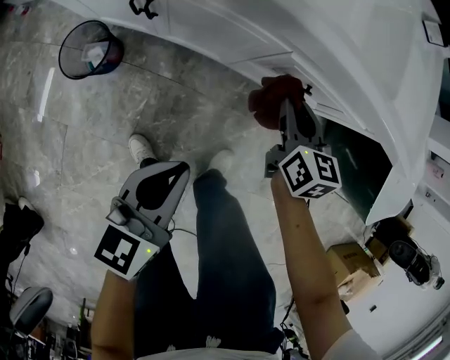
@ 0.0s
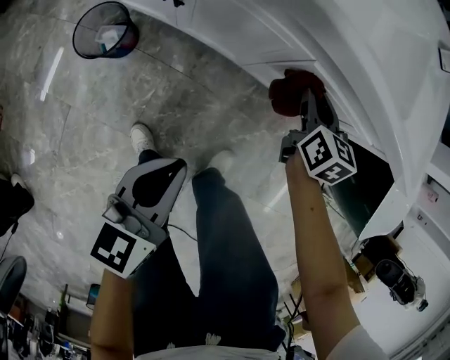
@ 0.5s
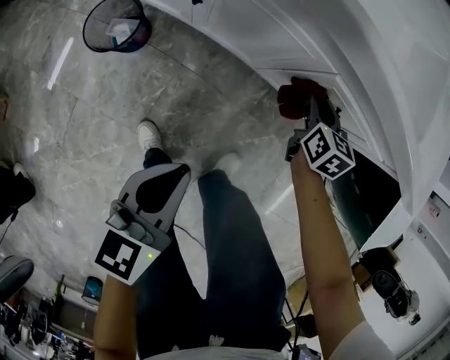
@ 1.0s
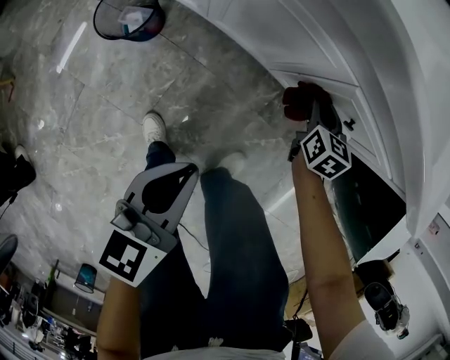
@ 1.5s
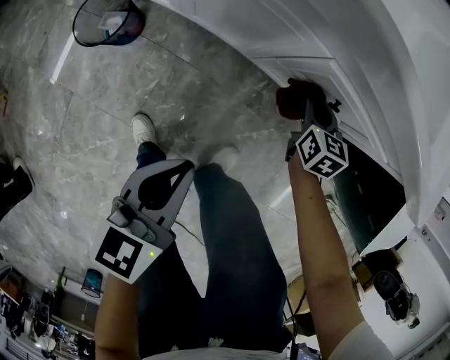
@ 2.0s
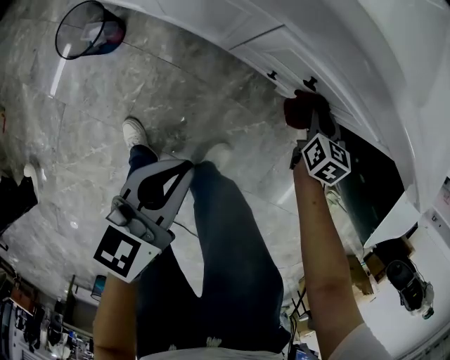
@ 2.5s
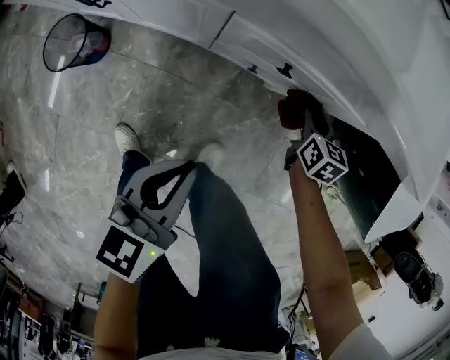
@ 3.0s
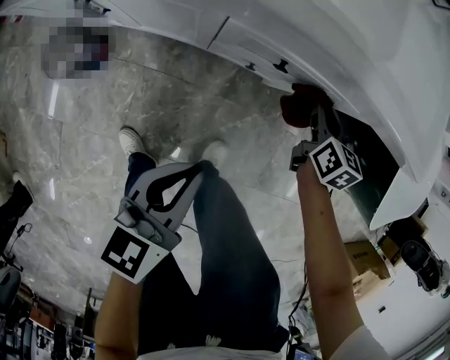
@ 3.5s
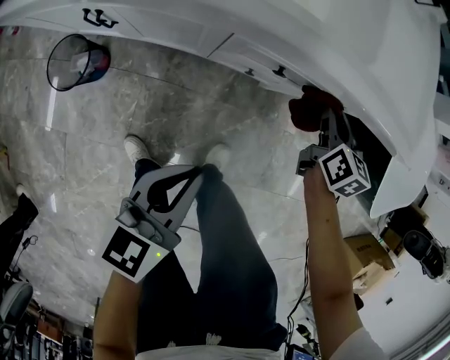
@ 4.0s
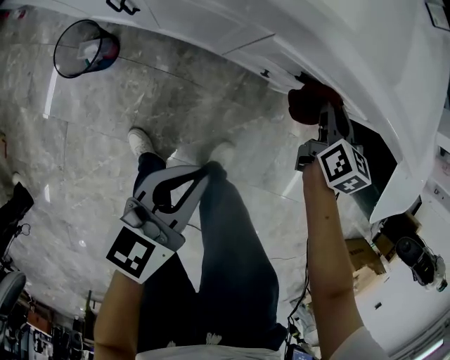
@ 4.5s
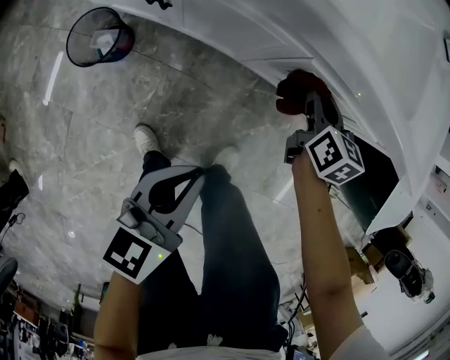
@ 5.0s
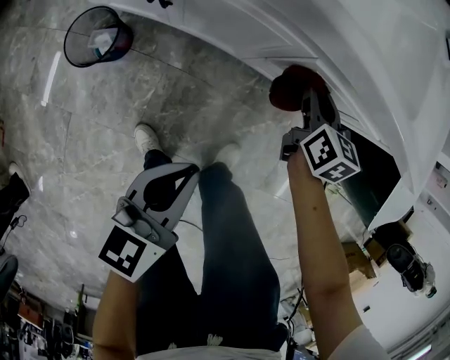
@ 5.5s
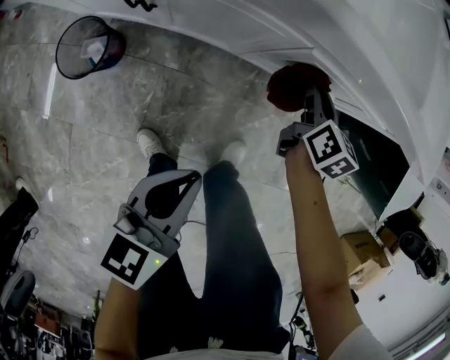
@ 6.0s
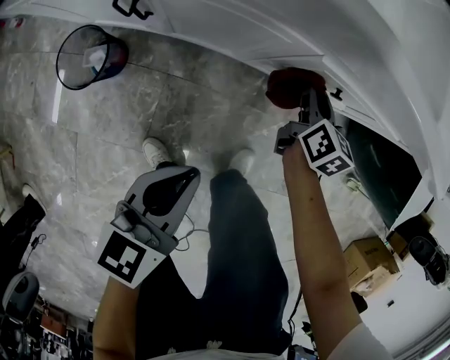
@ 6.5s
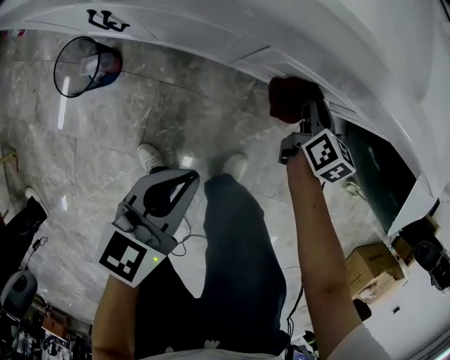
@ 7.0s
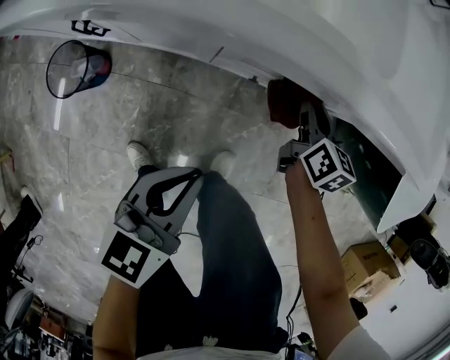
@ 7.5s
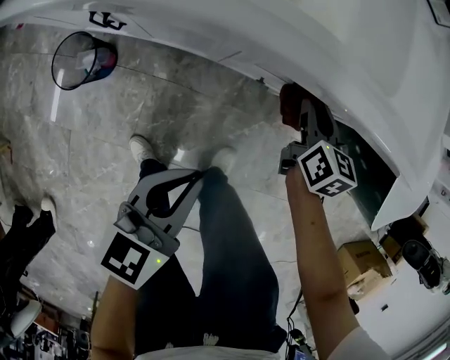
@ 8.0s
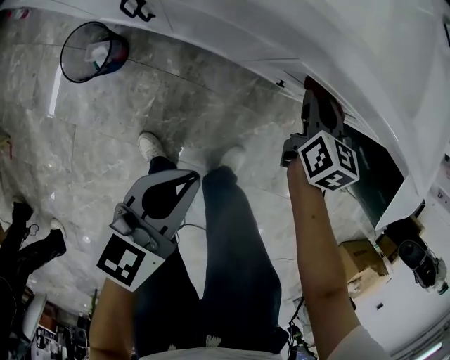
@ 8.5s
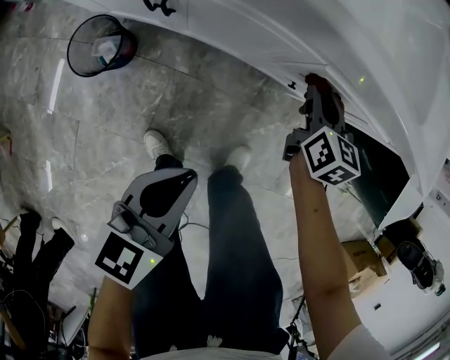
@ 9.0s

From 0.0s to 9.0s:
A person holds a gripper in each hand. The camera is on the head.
From 0.0s to 2.0s: The right gripper is displaced downward by roughly 10 cm.
From 2.0s to 4.5s: The right gripper is displaced upward and to the right by roughly 15 cm.
From 4.5s to 7.0s: The right gripper moves downward, about 10 cm, and travels to the left and back again, about 10 cm each way.
From 7.0s to 9.0s: The left gripper shifts some 5 cm to the left; the right gripper moves to the left and upward, some 15 cm.

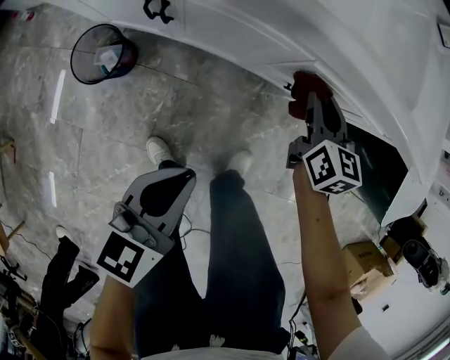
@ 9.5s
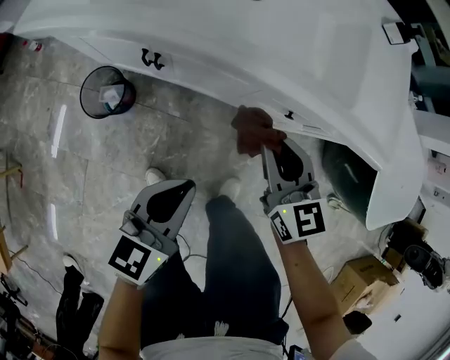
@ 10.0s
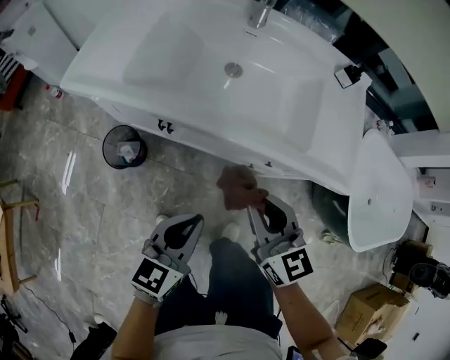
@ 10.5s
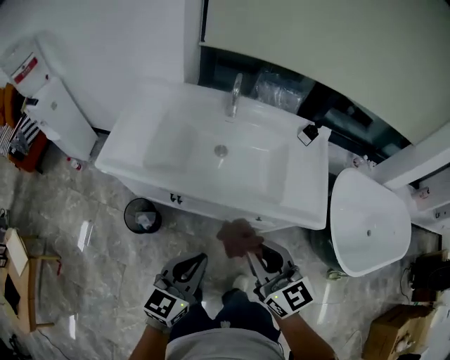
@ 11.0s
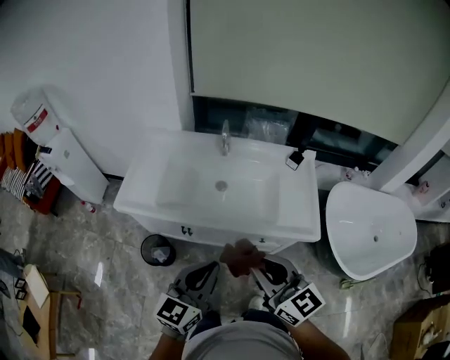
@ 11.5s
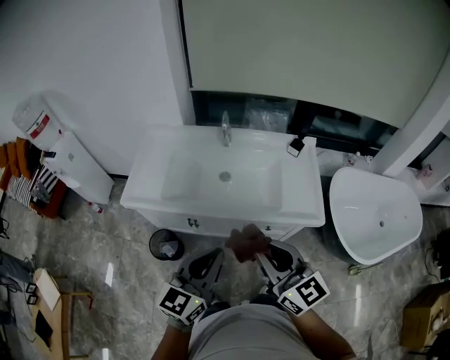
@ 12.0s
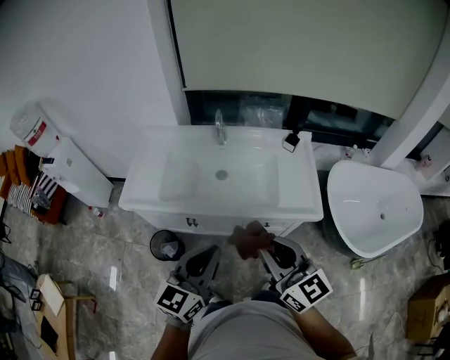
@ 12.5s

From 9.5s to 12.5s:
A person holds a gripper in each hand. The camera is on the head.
From 9.5s to 11.0s: Both grippers move upward, approximately 35 cm. The left gripper changes its angle by some 20 degrees. The right gripper changes its angle by approximately 30 degrees.
From 11.0s to 12.5s: The two grippers go some 15 cm upward.

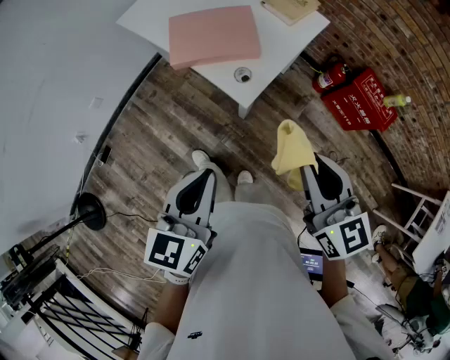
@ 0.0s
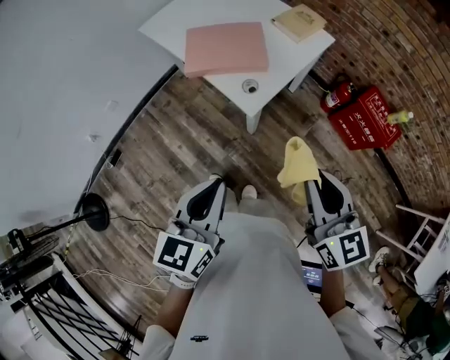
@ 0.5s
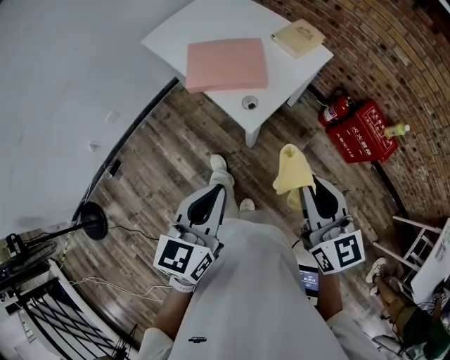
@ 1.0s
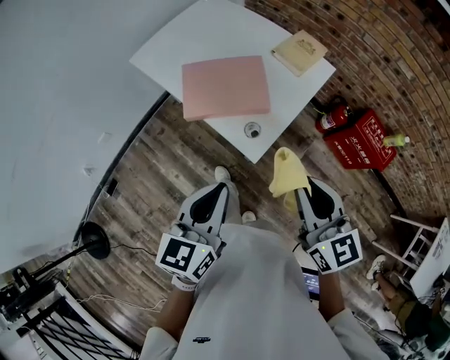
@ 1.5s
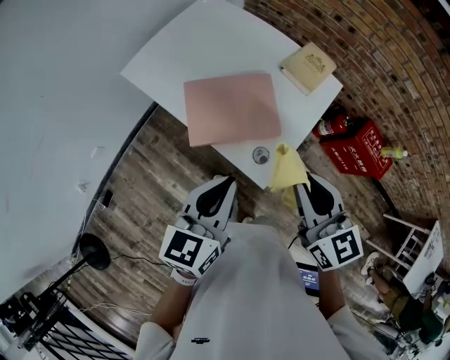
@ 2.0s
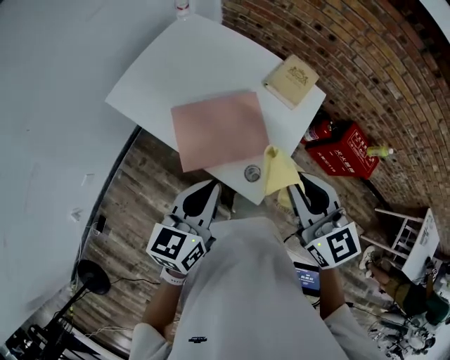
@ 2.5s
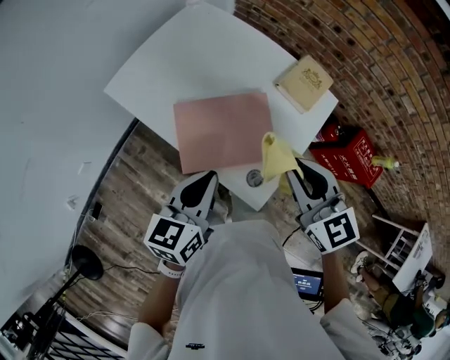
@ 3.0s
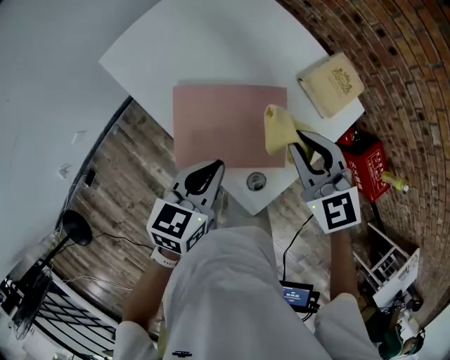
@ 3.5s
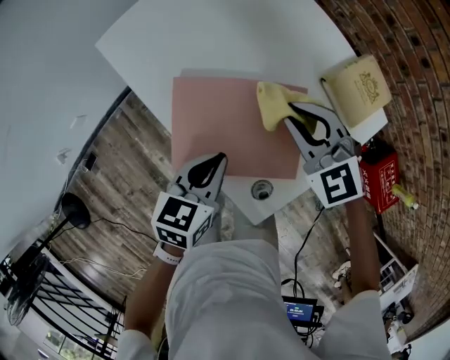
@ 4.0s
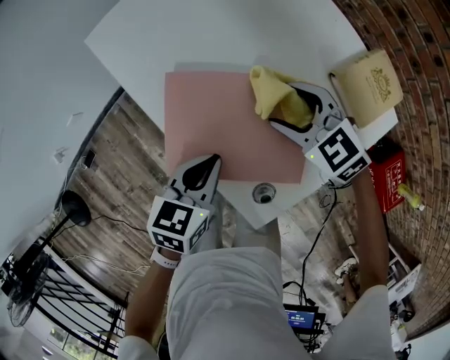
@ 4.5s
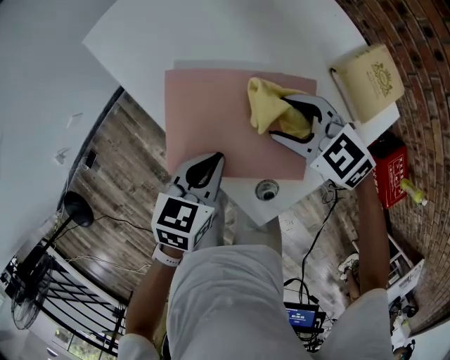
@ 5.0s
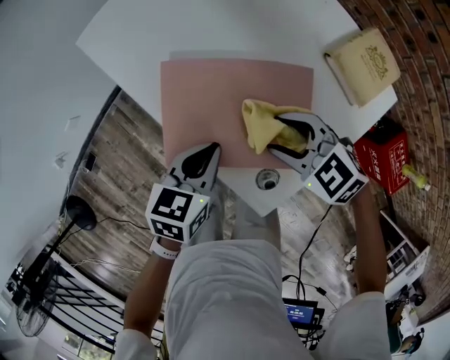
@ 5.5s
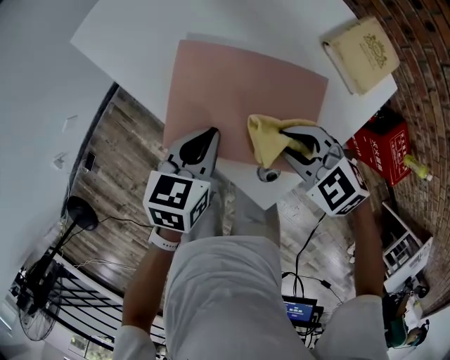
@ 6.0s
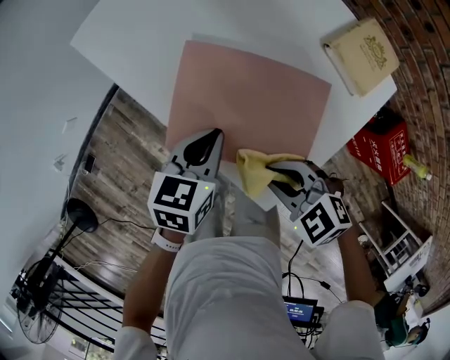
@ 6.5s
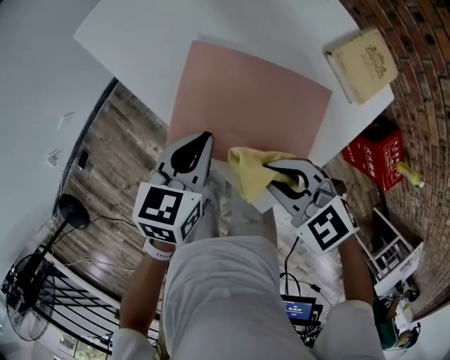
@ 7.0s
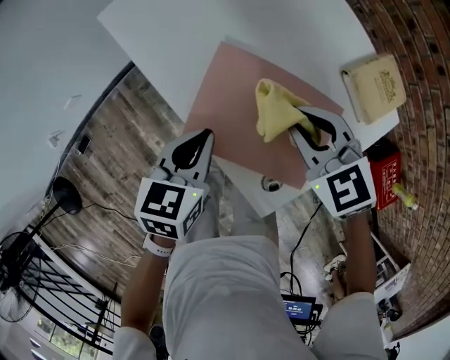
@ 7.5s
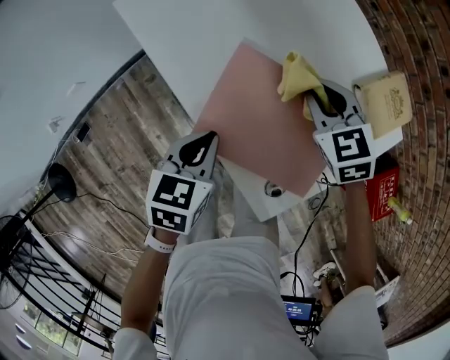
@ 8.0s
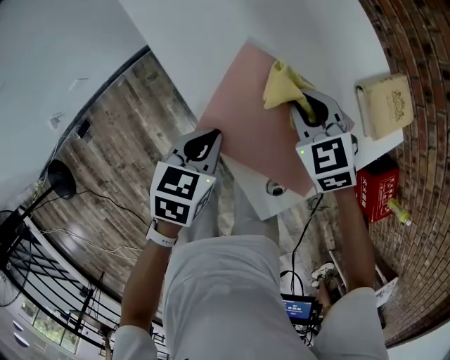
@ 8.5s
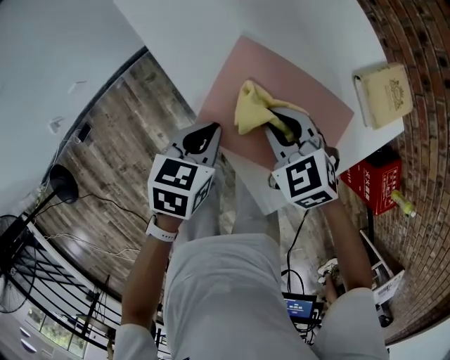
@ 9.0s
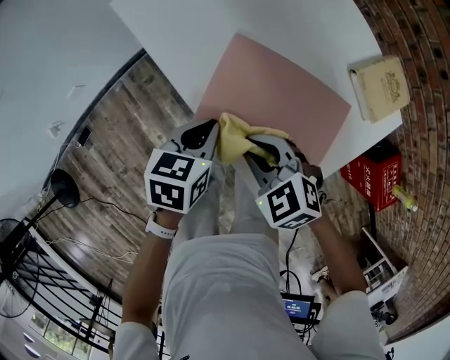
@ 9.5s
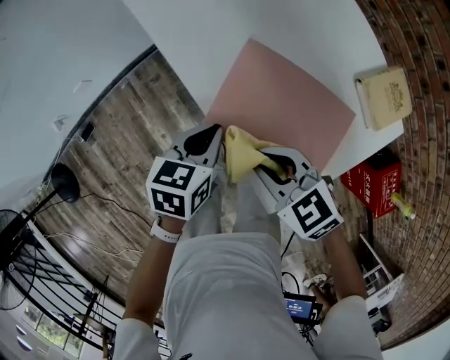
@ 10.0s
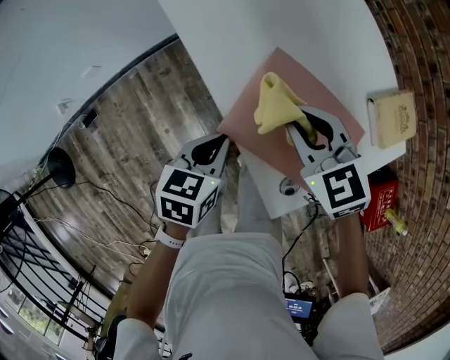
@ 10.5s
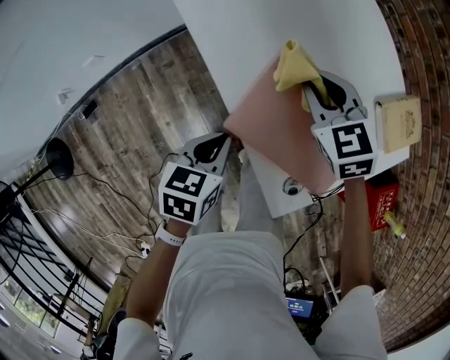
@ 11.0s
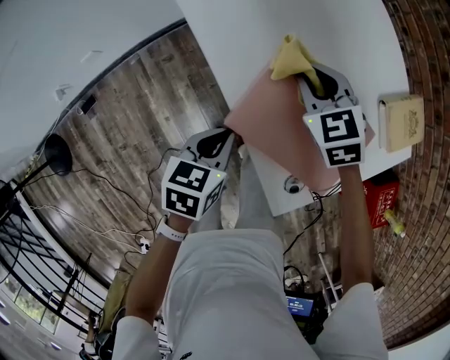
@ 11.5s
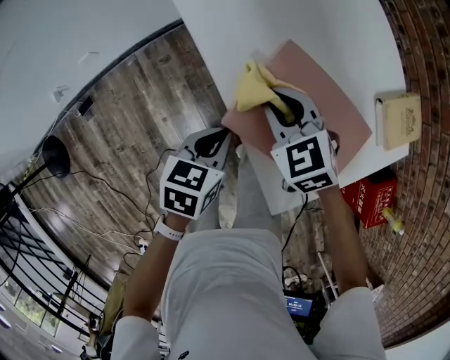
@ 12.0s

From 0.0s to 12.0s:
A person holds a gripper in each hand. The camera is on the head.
From 0.0s to 2.0s: Both grippers travel together forward, some 25 cm.
From 2.0s to 4.0s: The left gripper is displaced downward and forward by roughly 25 cm, and changes its angle by roughly 20 degrees. The right gripper moves forward and downward, roughly 35 cm, and rotates about 50 degrees.
From 4.0s to 6.0s: The right gripper goes some 15 cm backward and downward, turns by some 30 degrees, and opens, then closes again.
From 6.0s to 8.0s: The left gripper shifts some 5 cm to the left; the right gripper goes approximately 20 cm forward, and turns by roughly 20 degrees.
From 8.0s to 10.0s: The right gripper moves backward and to the left, roughly 20 cm, and turns by some 30 degrees.
From 10.0s to 12.0s: The right gripper is displaced forward by some 10 cm.

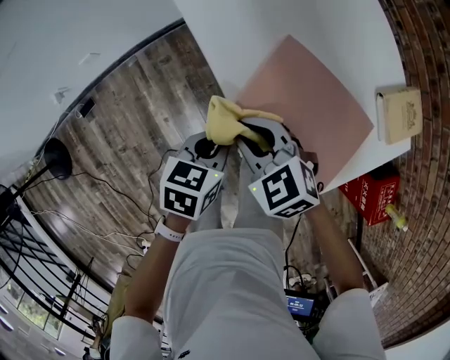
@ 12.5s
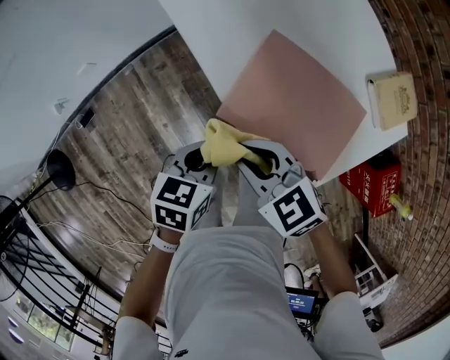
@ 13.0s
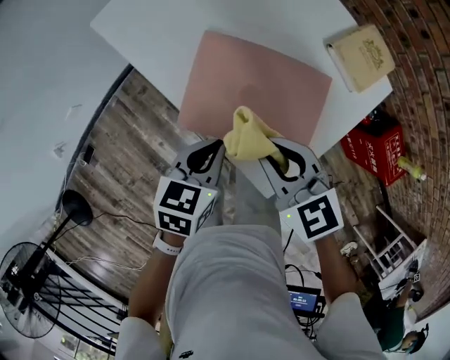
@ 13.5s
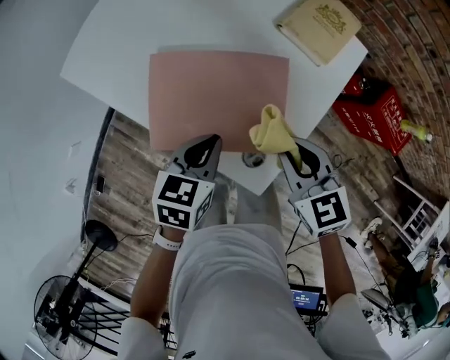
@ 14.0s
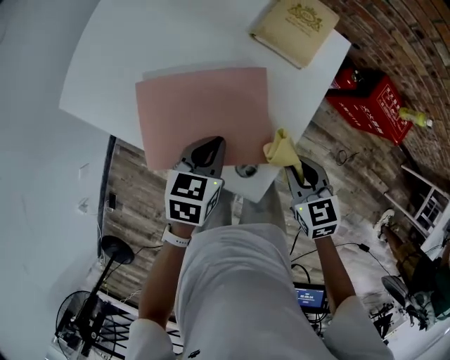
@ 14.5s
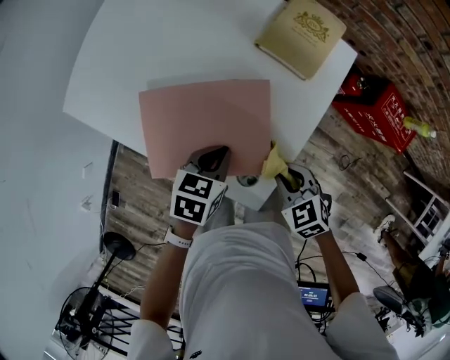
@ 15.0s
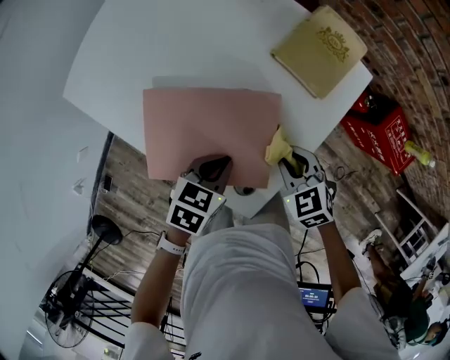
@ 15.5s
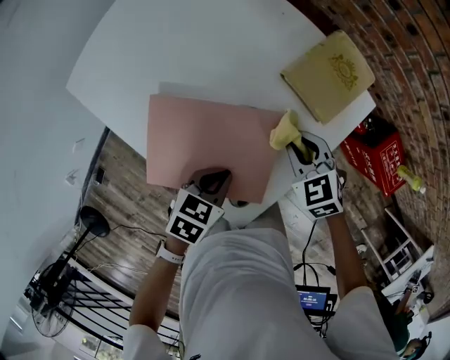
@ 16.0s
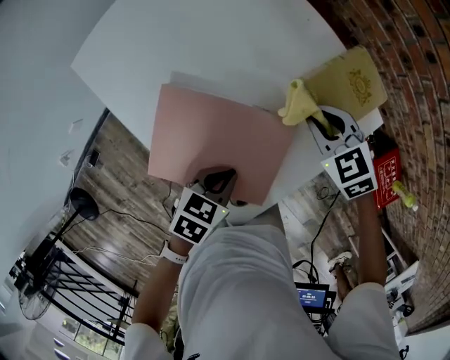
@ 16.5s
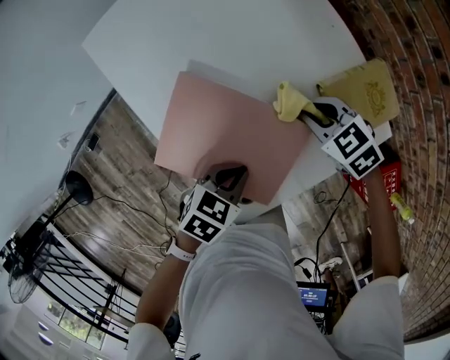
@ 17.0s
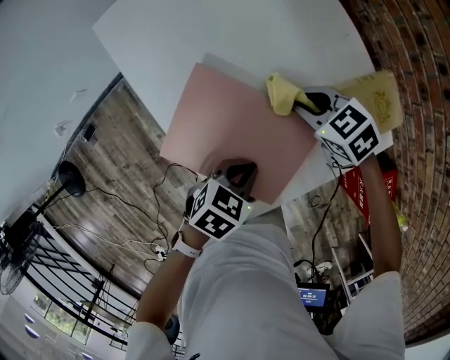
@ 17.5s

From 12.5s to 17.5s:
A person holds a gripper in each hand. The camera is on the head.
From 12.5s to 15.0s: The right gripper travels upward and back again, some 10 cm each way, and rotates about 50 degrees. The left gripper moves some 20 cm, and changes its angle by some 40 degrees.
From 15.0s to 17.5s: The right gripper shifts by some 25 cm, and turns by roughly 40 degrees.
